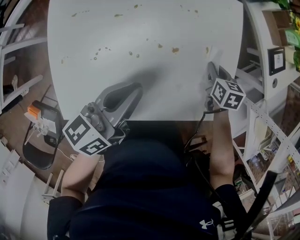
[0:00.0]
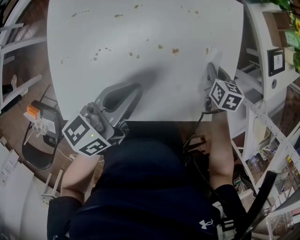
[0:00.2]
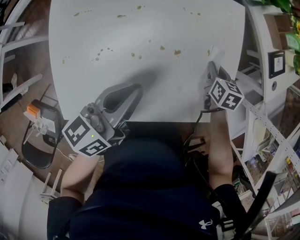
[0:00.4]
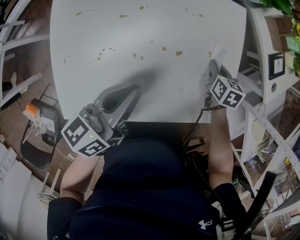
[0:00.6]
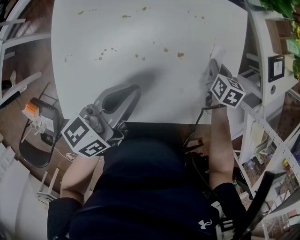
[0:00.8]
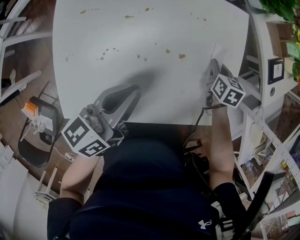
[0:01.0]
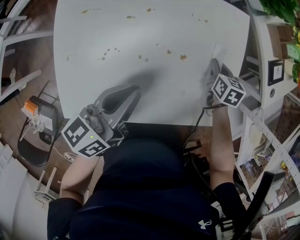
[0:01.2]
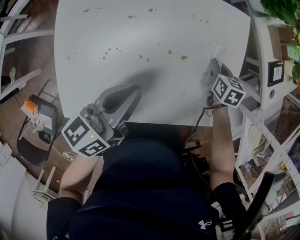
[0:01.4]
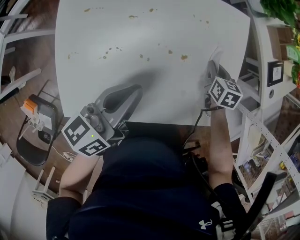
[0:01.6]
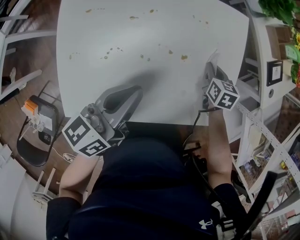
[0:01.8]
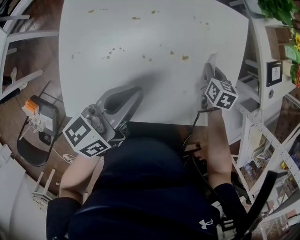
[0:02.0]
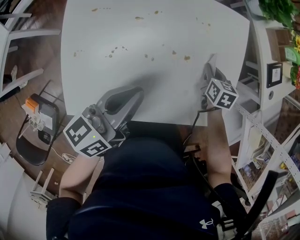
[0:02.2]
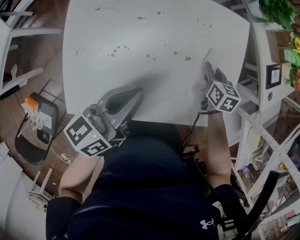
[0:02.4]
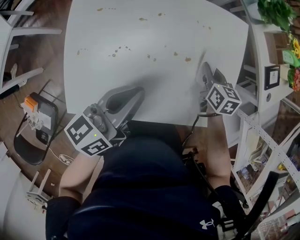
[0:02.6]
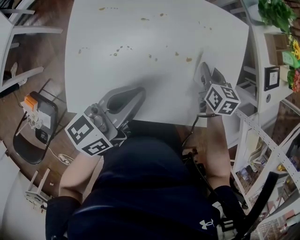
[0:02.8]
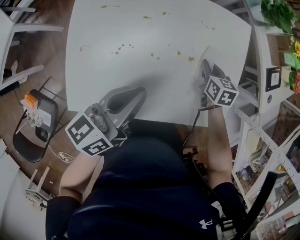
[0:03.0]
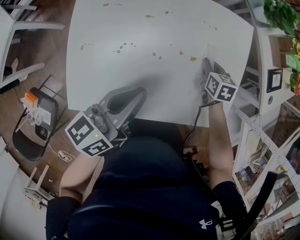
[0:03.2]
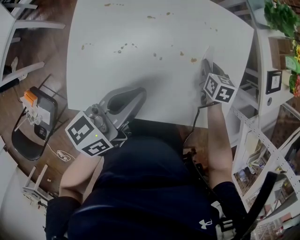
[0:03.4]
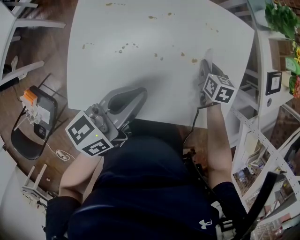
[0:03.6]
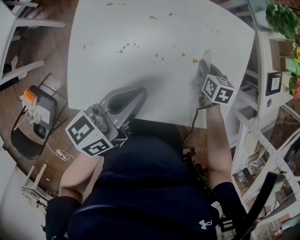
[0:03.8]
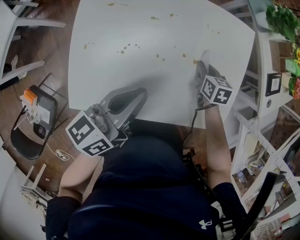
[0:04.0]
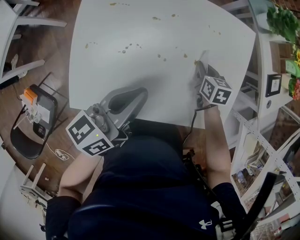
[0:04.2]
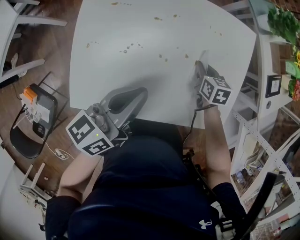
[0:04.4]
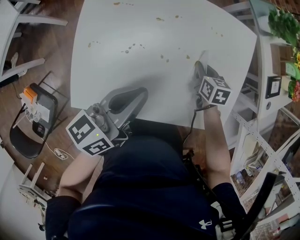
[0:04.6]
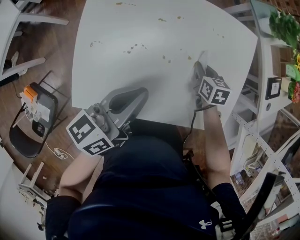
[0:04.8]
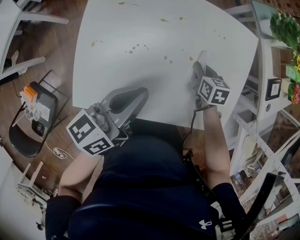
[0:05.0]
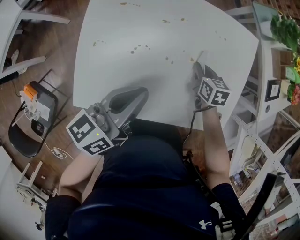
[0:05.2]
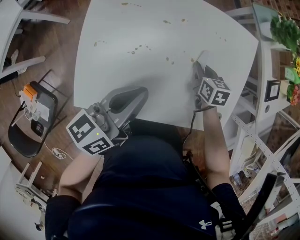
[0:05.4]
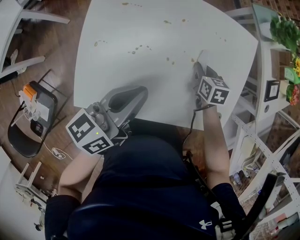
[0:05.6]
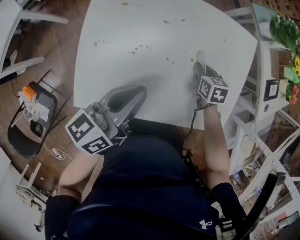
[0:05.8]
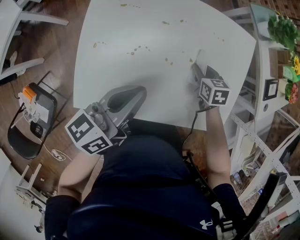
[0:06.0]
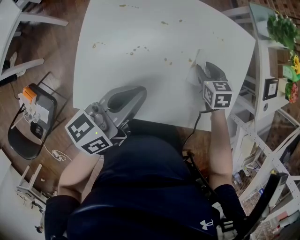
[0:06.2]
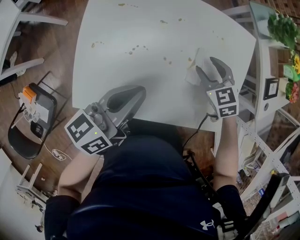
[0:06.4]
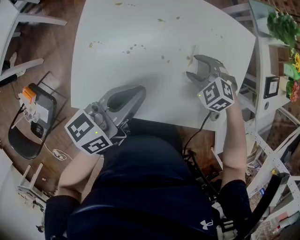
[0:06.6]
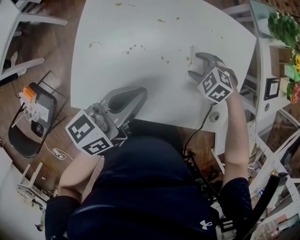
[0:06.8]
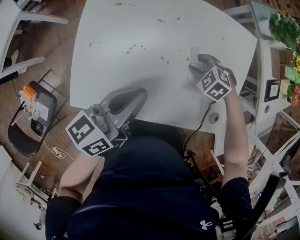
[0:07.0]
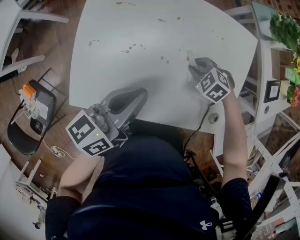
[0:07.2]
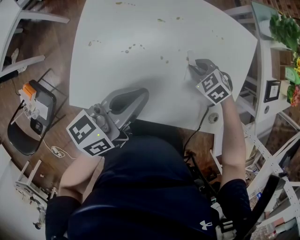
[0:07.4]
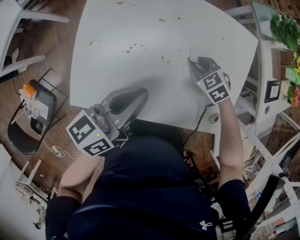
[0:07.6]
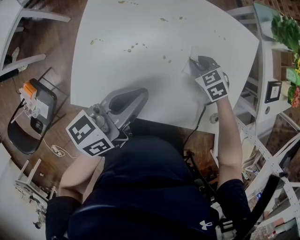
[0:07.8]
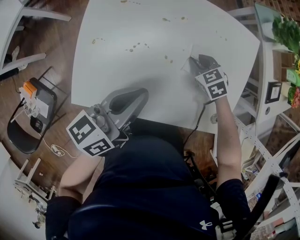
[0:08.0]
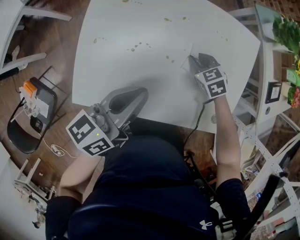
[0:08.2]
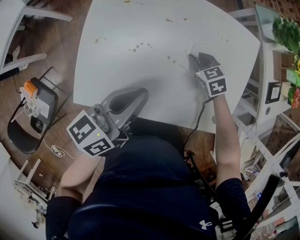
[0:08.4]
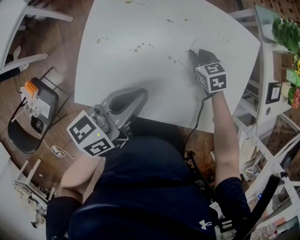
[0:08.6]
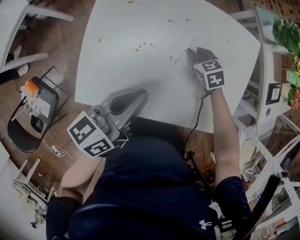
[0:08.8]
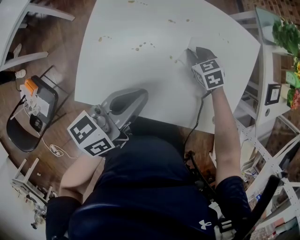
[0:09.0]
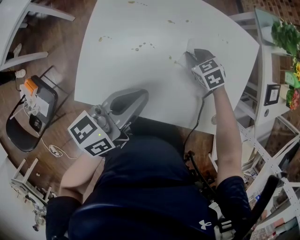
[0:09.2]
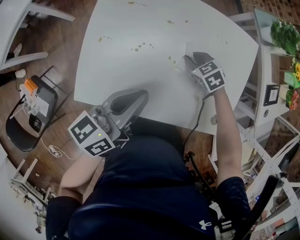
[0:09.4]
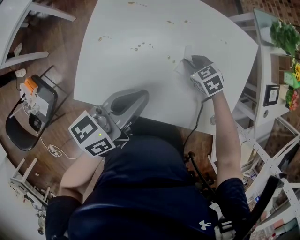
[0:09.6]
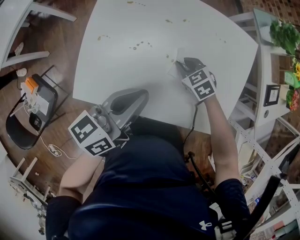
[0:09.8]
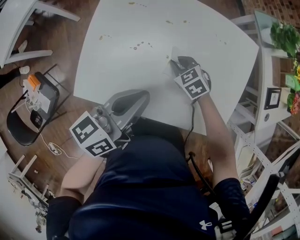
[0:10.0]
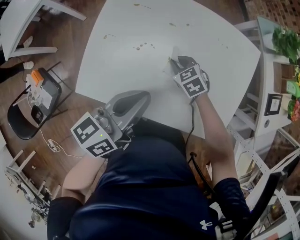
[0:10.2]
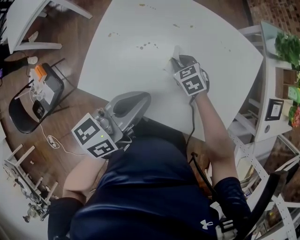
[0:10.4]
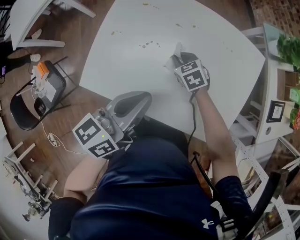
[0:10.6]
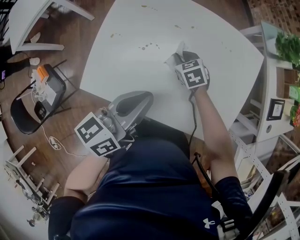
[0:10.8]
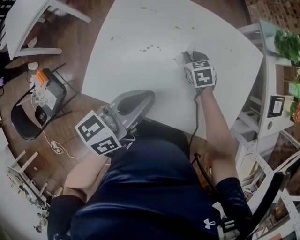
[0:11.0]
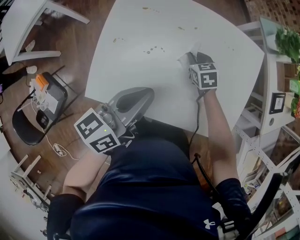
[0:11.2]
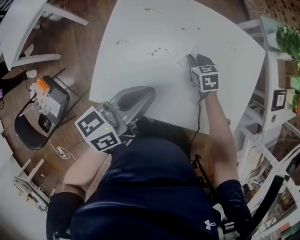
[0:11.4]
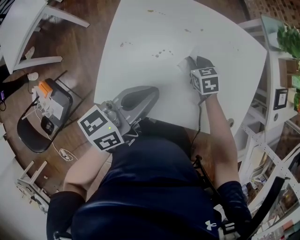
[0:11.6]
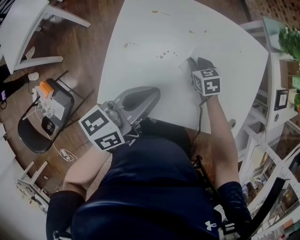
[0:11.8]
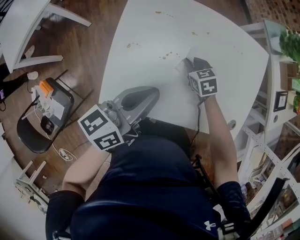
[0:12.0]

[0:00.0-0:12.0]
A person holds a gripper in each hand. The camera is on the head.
0.0 to 1.6 s: The grippers move only a little.
1.6 to 3.0 s: The right gripper shifts some 5 cm to the left.
3.0 to 4.4 s: The right gripper shifts by approximately 5 cm.
4.4 to 6.0 s: The grippers stay close to where they were, moving slightly.
6.0 to 7.6 s: The right gripper reaches approximately 5 cm upward, then returns, rotates approximately 40 degrees, and opens and closes again.
7.6 to 9.0 s: The right gripper moves roughly 5 cm.
9.0 to 10.4 s: The right gripper moves to the left, approximately 5 cm. Meanwhile the left gripper moves about 5 cm.
10.4 to 12.0 s: The left gripper travels to the left by approximately 10 cm.

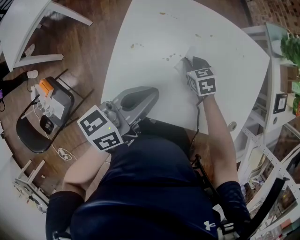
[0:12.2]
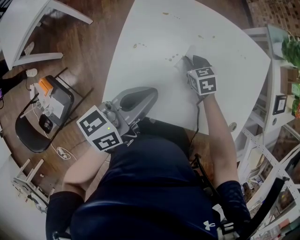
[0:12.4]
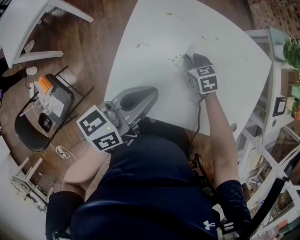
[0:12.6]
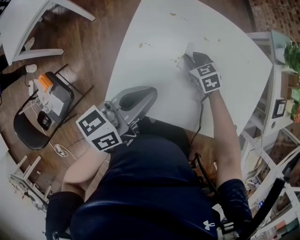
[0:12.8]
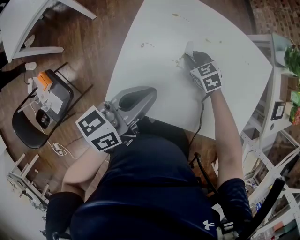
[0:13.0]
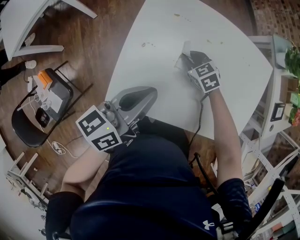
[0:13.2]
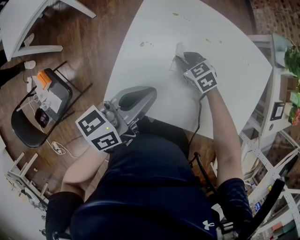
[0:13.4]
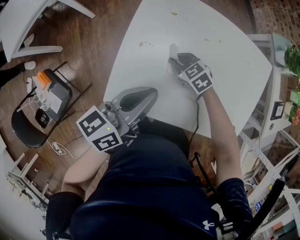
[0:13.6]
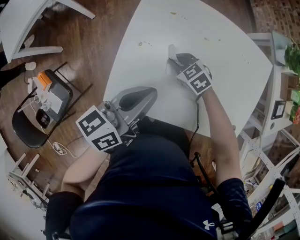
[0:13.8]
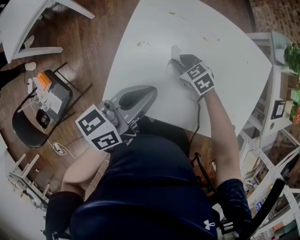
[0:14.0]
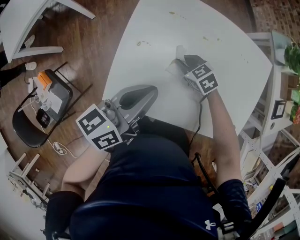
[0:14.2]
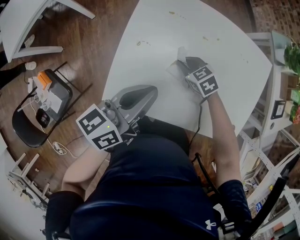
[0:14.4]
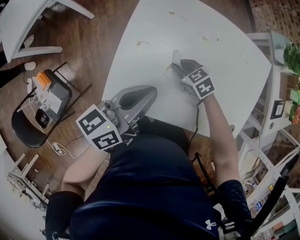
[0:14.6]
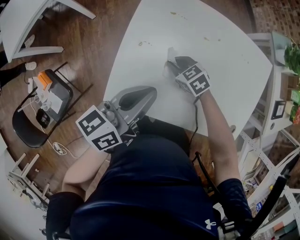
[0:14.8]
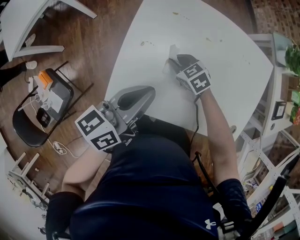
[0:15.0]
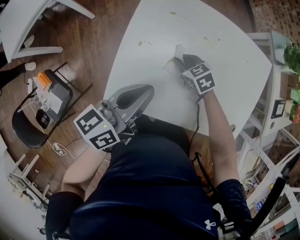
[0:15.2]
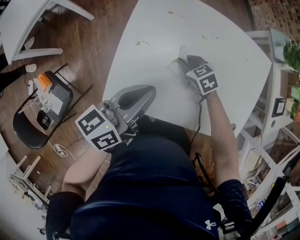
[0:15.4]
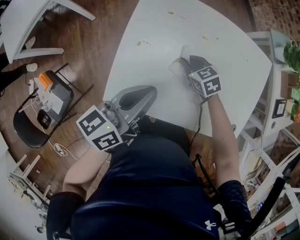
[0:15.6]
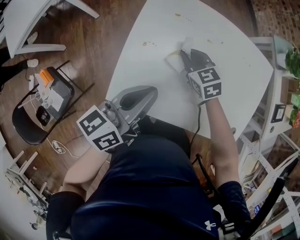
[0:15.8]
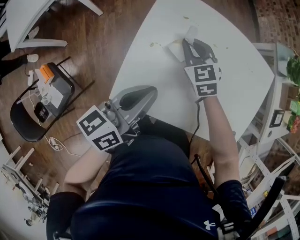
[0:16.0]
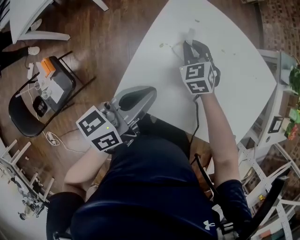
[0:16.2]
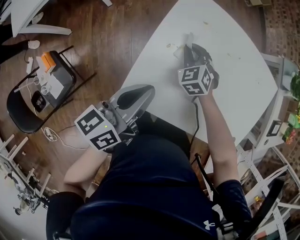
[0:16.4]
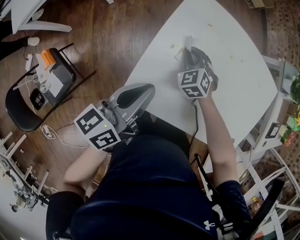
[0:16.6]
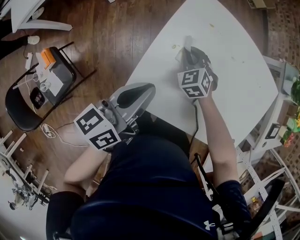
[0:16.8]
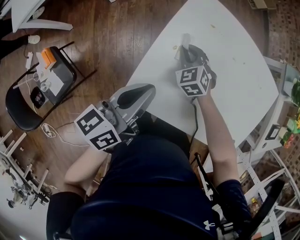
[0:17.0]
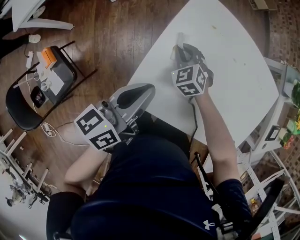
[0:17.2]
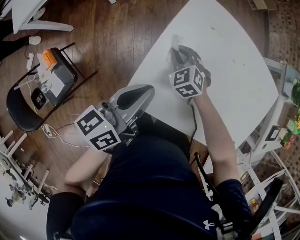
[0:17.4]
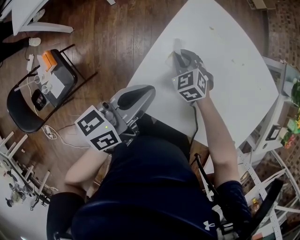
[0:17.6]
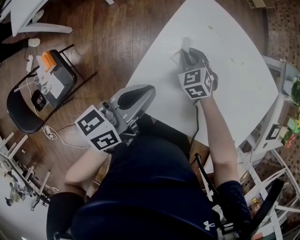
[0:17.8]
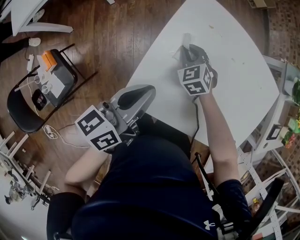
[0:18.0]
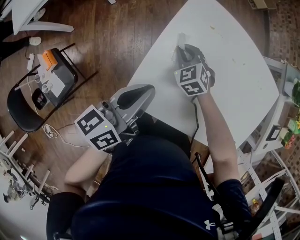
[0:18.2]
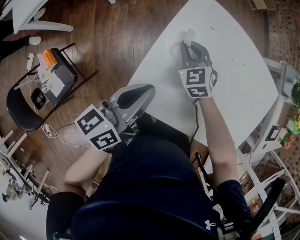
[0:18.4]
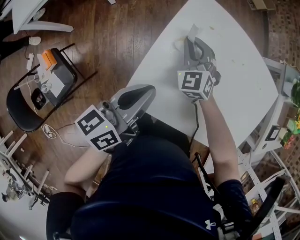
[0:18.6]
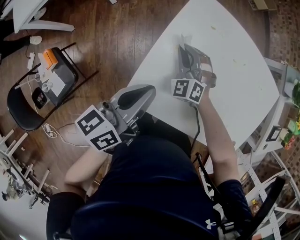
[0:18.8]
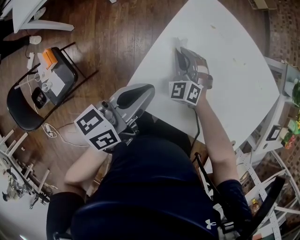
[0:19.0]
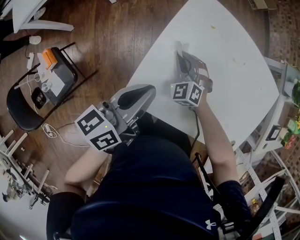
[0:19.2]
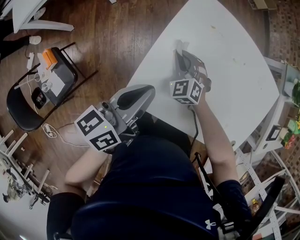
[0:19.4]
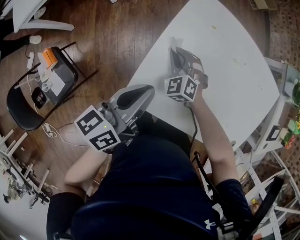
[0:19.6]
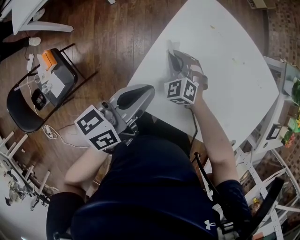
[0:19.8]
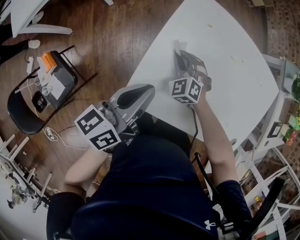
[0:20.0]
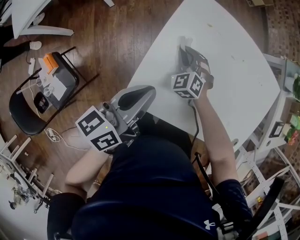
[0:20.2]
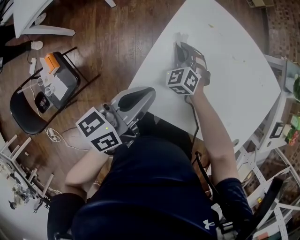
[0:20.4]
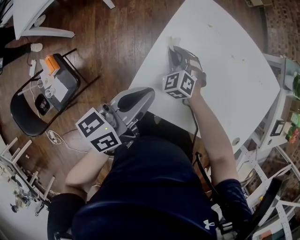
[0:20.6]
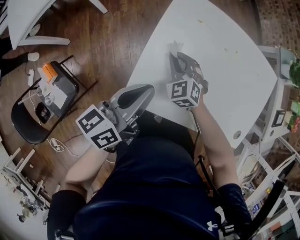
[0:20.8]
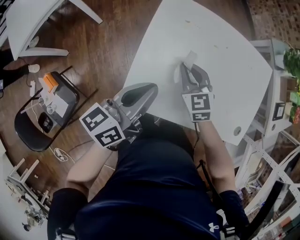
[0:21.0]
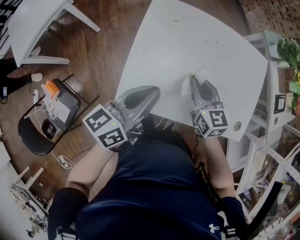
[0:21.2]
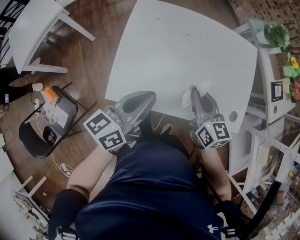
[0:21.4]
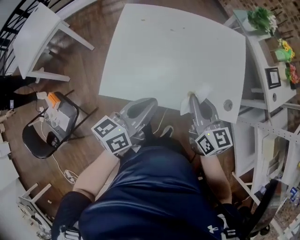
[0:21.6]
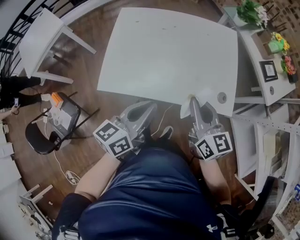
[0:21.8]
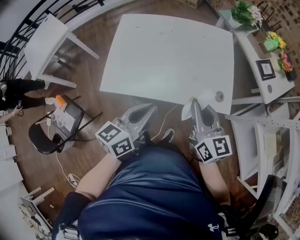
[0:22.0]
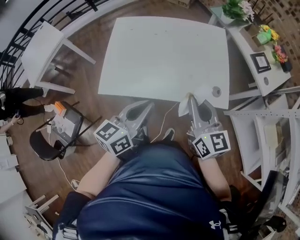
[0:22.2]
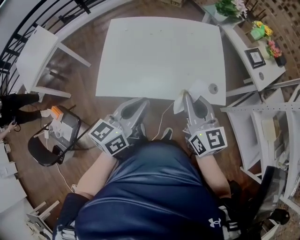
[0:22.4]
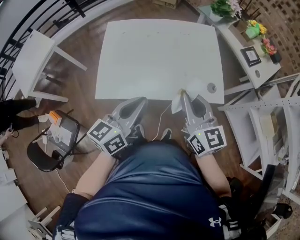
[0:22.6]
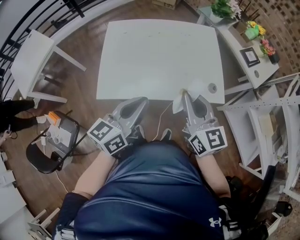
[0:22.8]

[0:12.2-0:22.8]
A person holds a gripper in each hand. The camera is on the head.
12.2 to 13.8 s: The right gripper is displaced to the left by roughly 10 cm, and turns by some 30 degrees.
13.8 to 15.2 s: There are only small adjustments of the grippers.
15.2 to 16.8 s: The right gripper heads to the left and forward, covering roughly 10 cm, and rotates some 30 degrees. Meanwhile the left gripper heads to the left, covering about 10 cm.
16.8 to 18.2 s: There are only small adjustments of the grippers.
19.8 to 21.2 s: The right gripper moves left and right over about 20 cm, changing direction 2 times, and twists about 60 degrees clockwise, seen from behind; the left gripper goes some 10 cm to the right and upward.
21.2 to 22.8 s: The left gripper travels to the right and backward by about 25 cm, while the right gripper is displaced to the right, backward and upward by about 35 cm, and changes its angle by about 30 degrees.

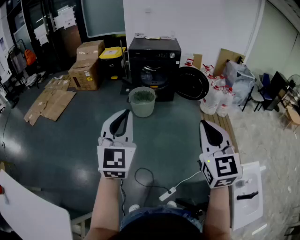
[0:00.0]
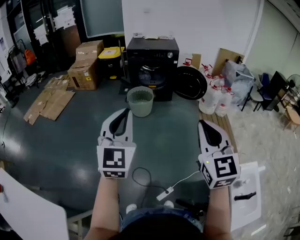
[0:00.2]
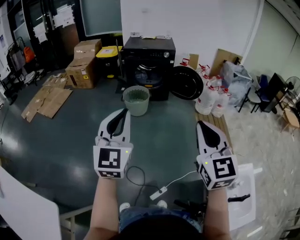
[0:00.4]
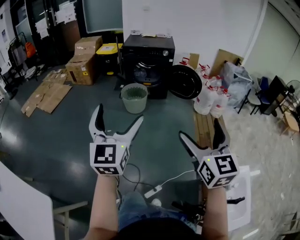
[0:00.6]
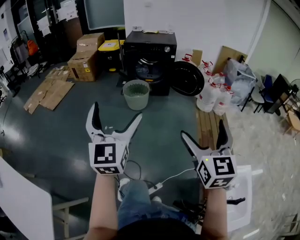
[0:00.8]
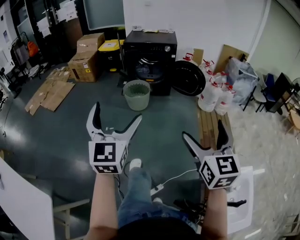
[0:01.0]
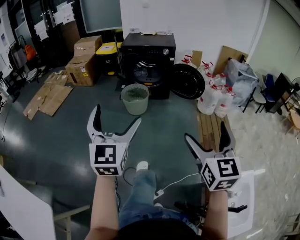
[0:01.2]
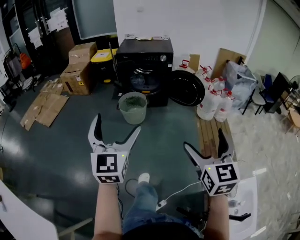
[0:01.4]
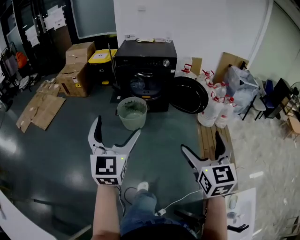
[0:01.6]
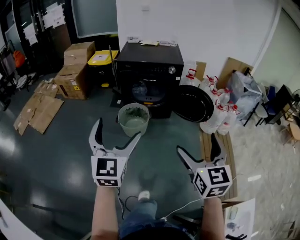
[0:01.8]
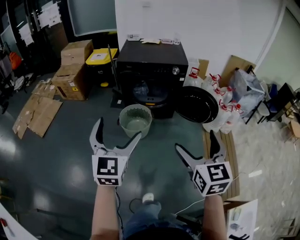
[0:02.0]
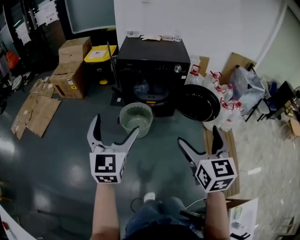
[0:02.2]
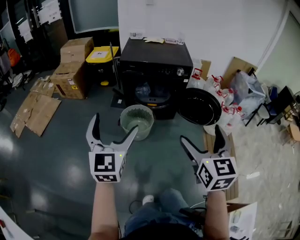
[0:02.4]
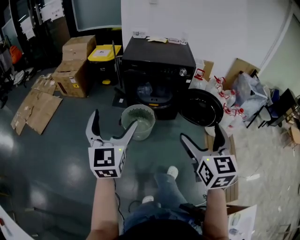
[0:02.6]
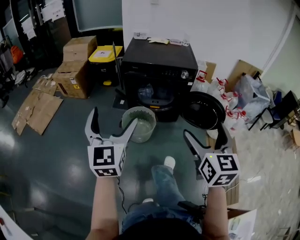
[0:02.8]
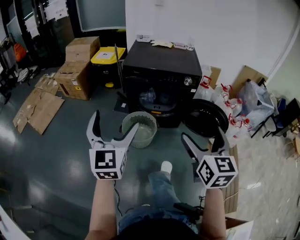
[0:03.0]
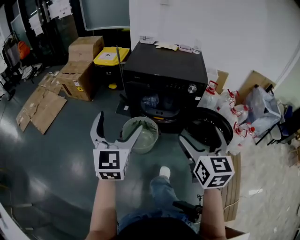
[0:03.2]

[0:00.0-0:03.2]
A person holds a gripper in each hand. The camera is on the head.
0.0 to 1.6 s: The left gripper travels forward by about 25 cm, and opens. The right gripper is displaced forward and to the right by approximately 25 cm, and opens its fingers.
1.6 to 3.2 s: Both grippers are carried forward, some 40 cm.
